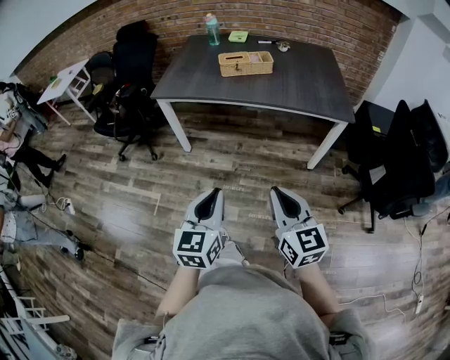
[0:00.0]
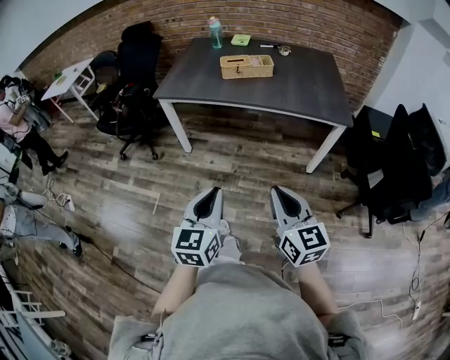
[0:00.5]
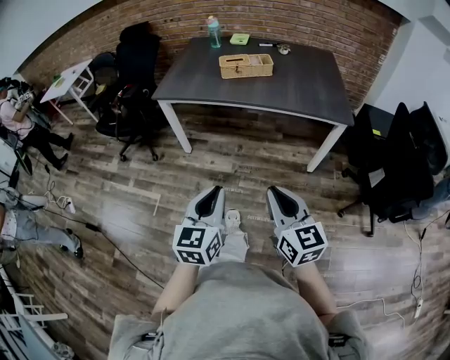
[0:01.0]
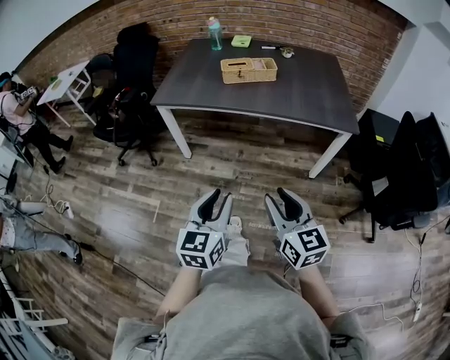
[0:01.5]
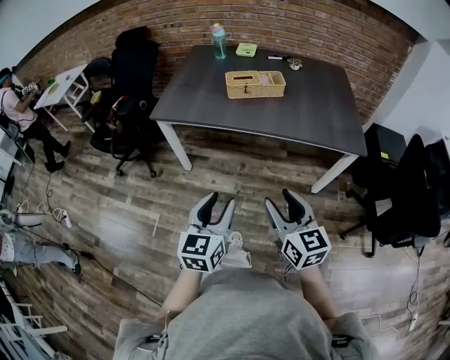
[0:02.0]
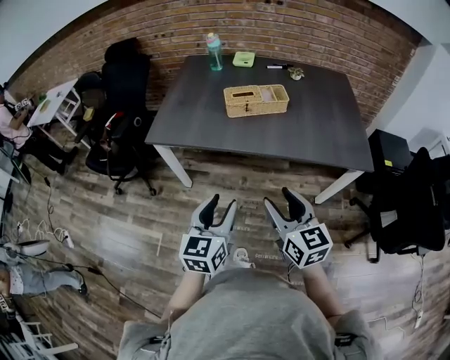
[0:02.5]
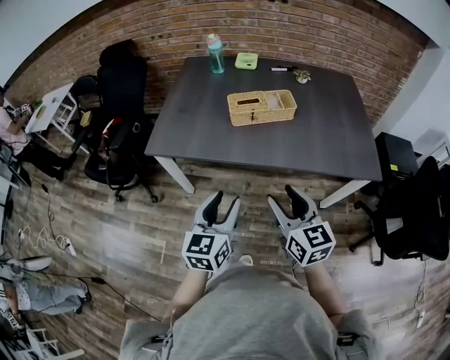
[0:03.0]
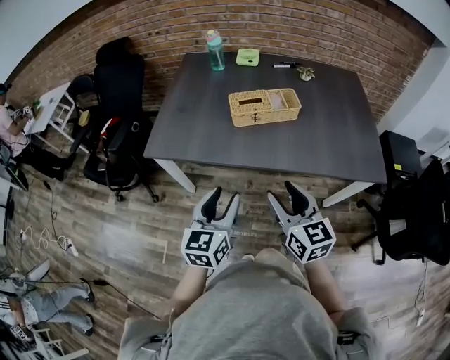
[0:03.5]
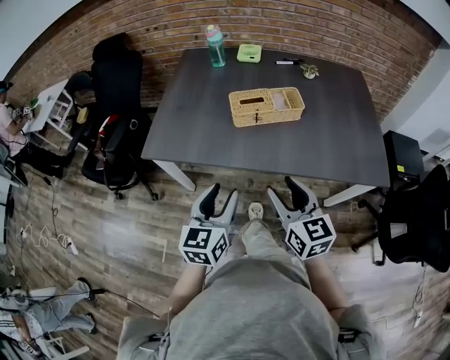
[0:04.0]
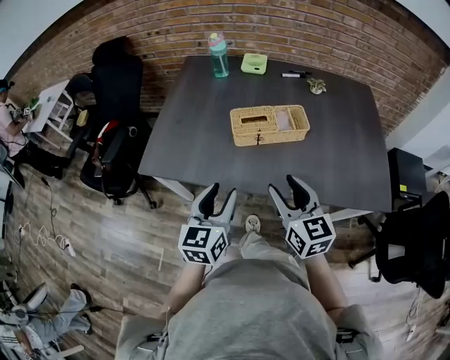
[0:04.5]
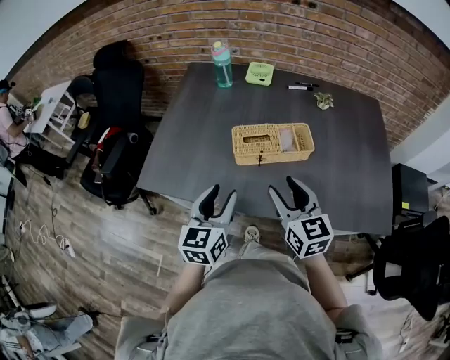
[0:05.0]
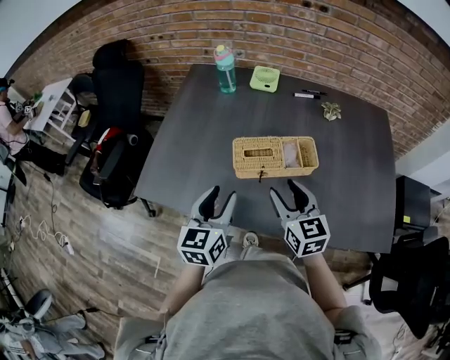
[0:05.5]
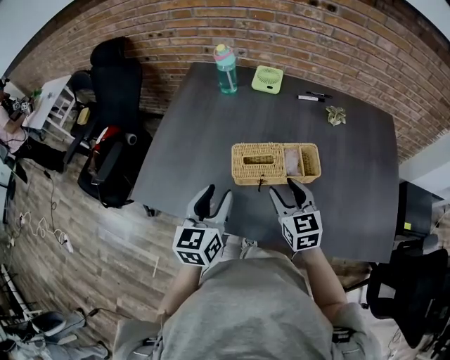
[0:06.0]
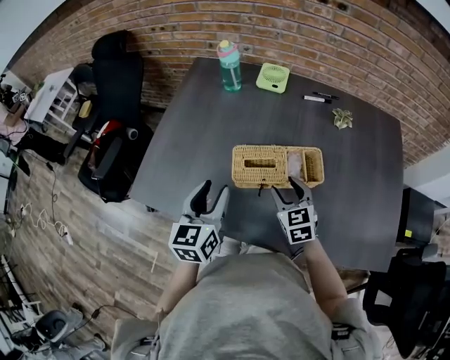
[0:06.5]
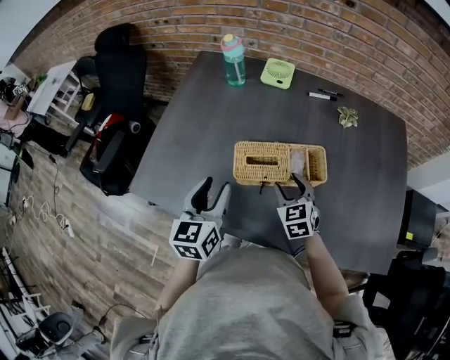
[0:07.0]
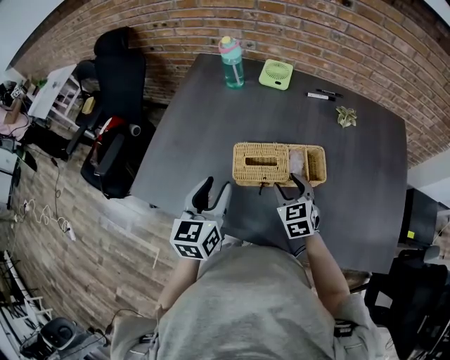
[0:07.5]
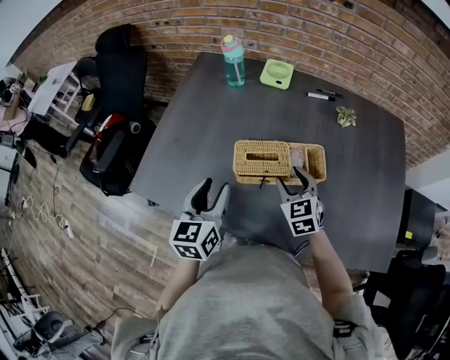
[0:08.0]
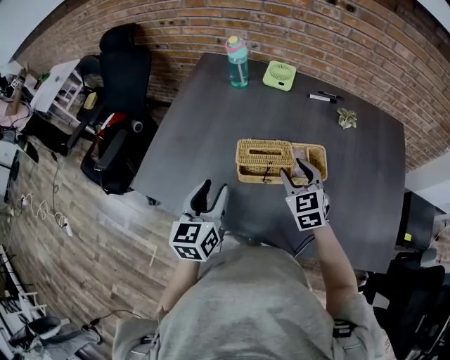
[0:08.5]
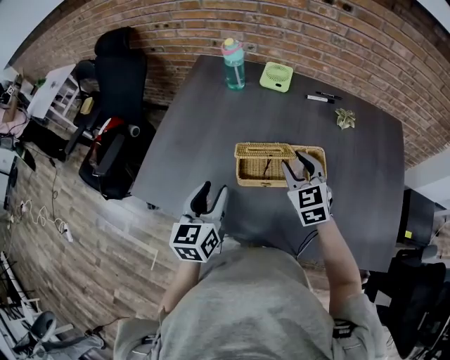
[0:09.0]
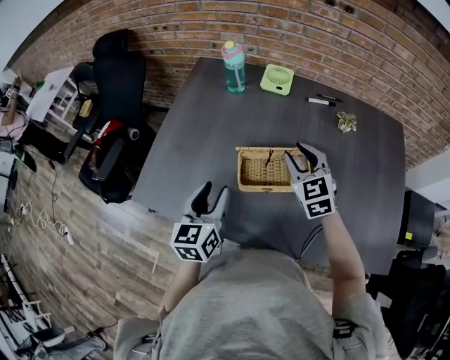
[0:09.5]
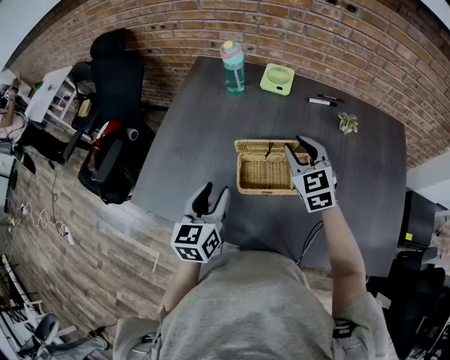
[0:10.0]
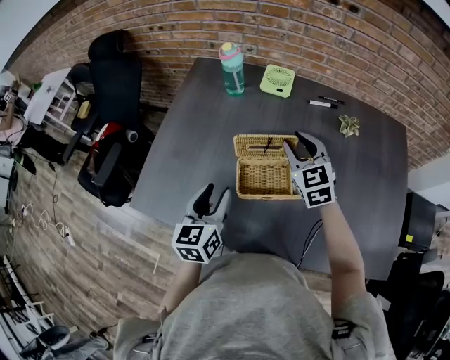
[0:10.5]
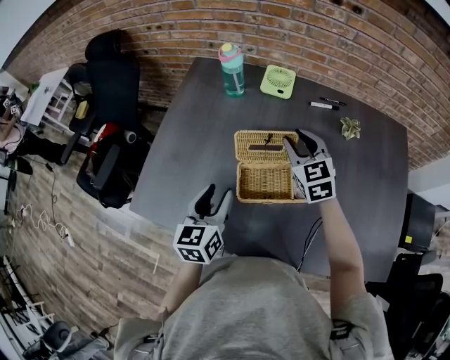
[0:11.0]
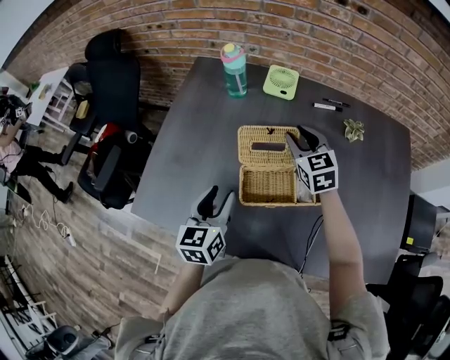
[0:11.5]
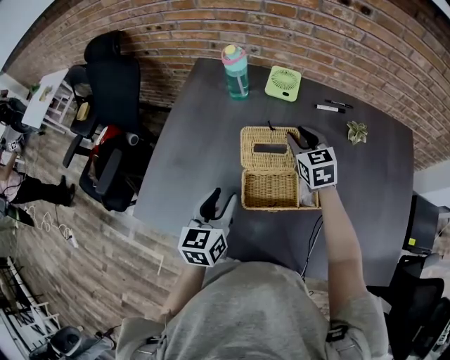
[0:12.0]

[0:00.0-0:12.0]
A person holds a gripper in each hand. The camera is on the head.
0:00.0 to 0:02.0: Both grippers move forward, roughly 15 cm. The left gripper opens, while the right gripper opens up.
0:02.0 to 0:04.0: Both grippers travel together forward, some 30 cm.
0:04.0 to 0:06.0: Both grippers travel together forward, roughly 30 cm.
0:06.0 to 0:08.0: The right gripper travels forward by some 5 cm.
0:08.0 to 0:10.0: The right gripper goes roughly 15 cm forward and upward.
0:10.0 to 0:12.0: The right gripper is displaced forward and downward by some 15 cm. The left gripper shifts some 5 cm forward.

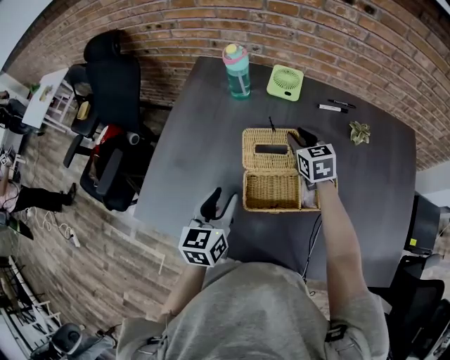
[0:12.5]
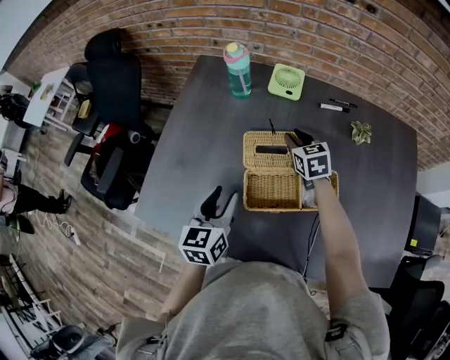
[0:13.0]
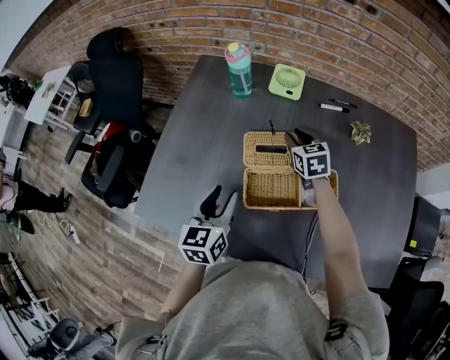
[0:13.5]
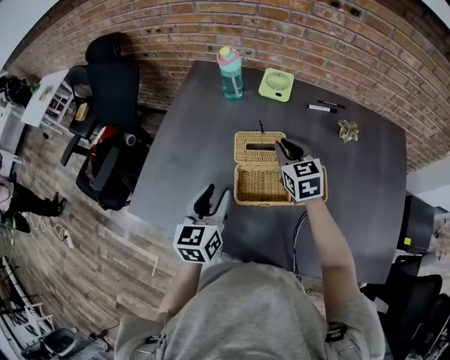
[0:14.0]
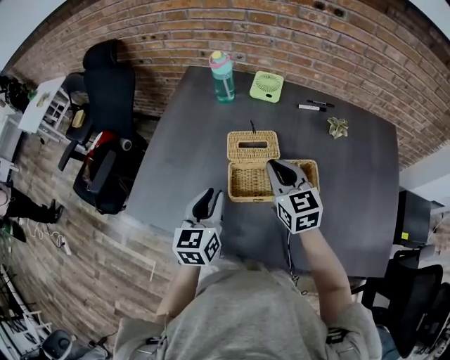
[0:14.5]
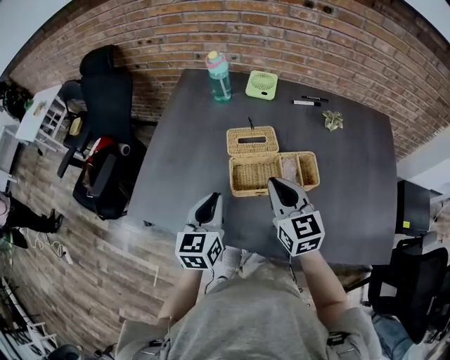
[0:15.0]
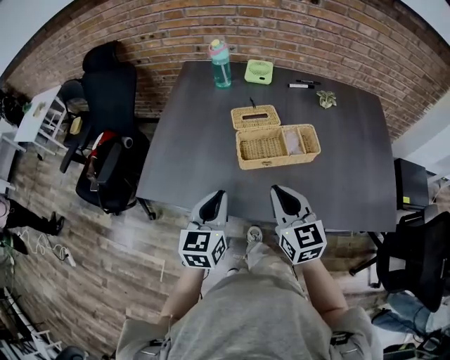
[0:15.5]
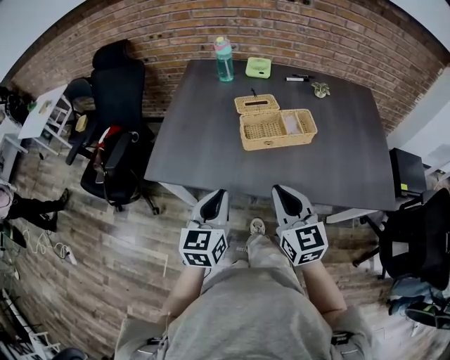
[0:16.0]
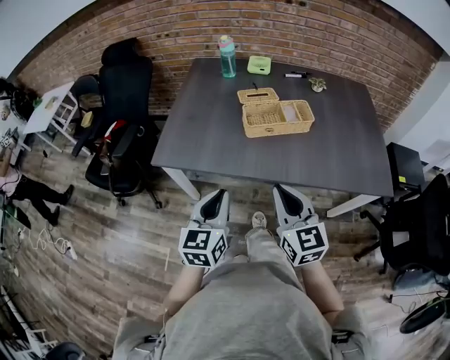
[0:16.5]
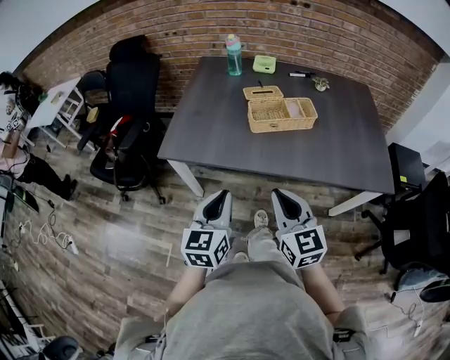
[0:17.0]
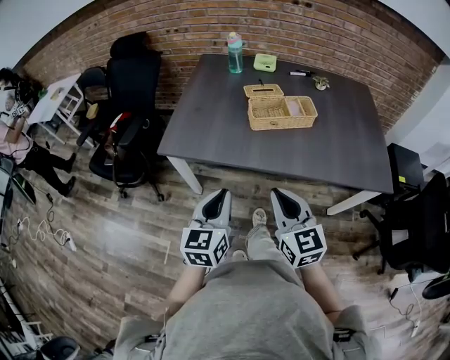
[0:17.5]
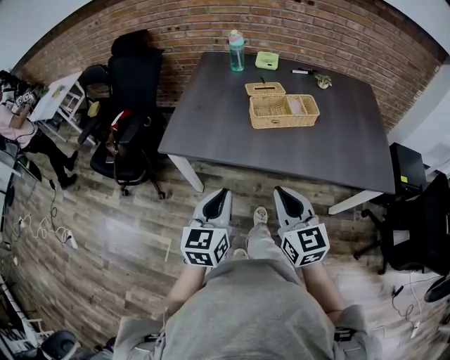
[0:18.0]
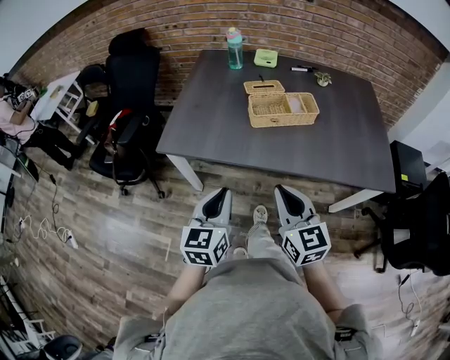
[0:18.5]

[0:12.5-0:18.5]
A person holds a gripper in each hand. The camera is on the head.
0:12.5 to 0:14.5: The right gripper moves backward and upward, roughly 20 cm, and closes up. The left gripper shifts by roughly 5 cm.
0:14.5 to 0:16.5: The grippers both shift backward by approximately 35 cm.
0:16.5 to 0:18.5: The grippers make only small movements.

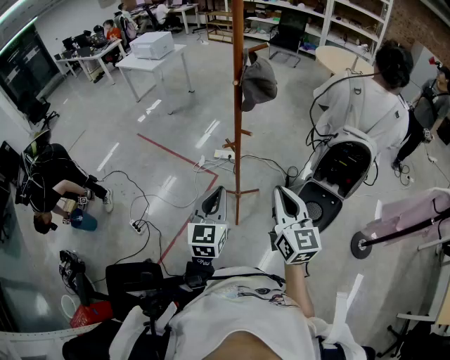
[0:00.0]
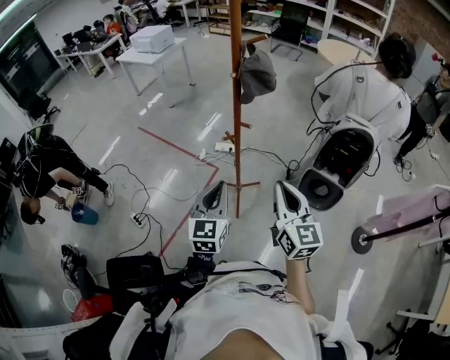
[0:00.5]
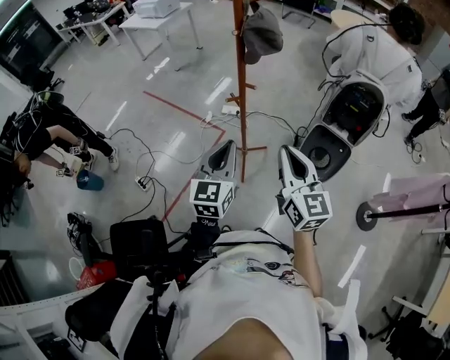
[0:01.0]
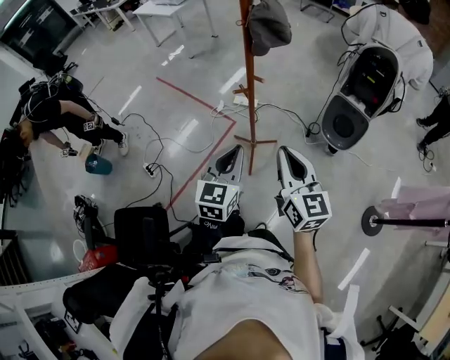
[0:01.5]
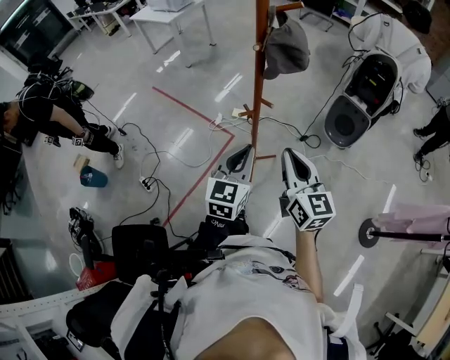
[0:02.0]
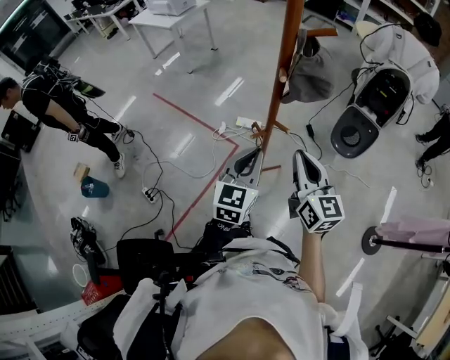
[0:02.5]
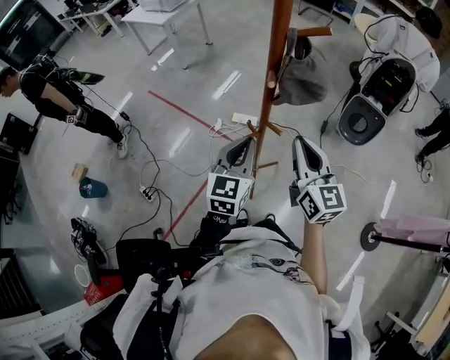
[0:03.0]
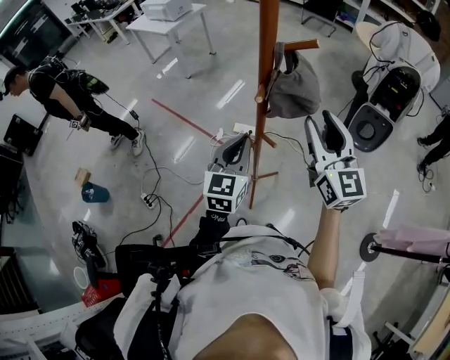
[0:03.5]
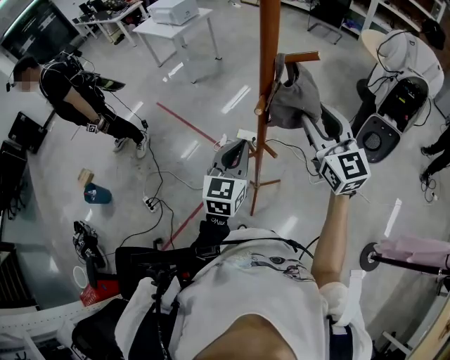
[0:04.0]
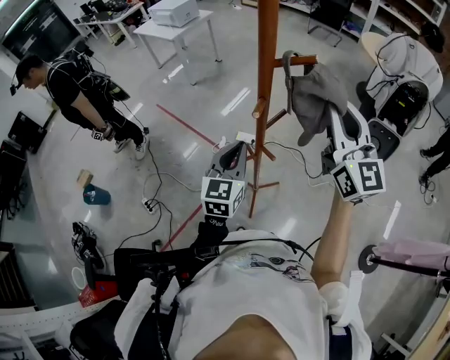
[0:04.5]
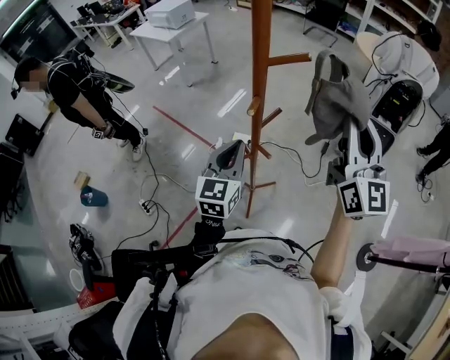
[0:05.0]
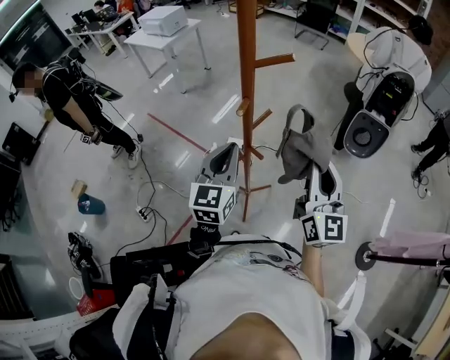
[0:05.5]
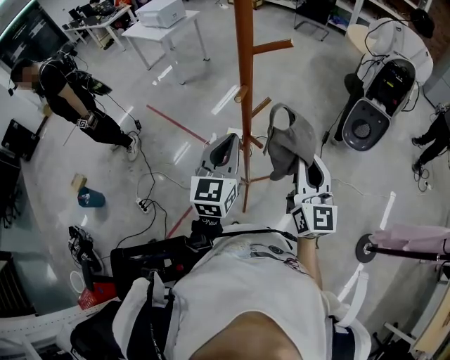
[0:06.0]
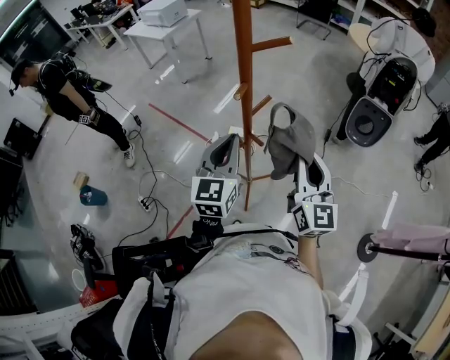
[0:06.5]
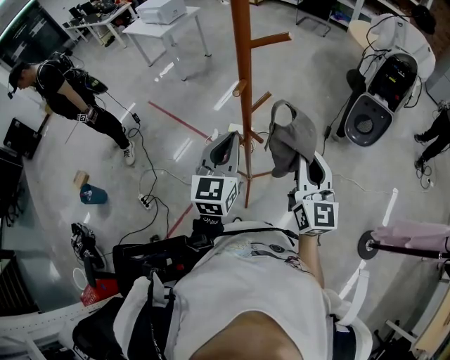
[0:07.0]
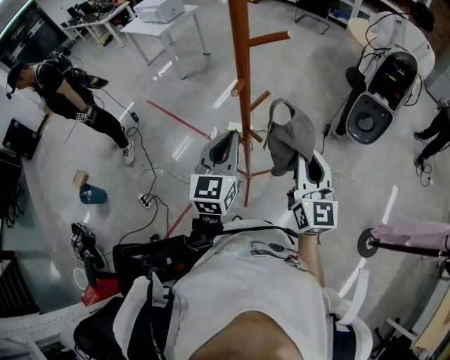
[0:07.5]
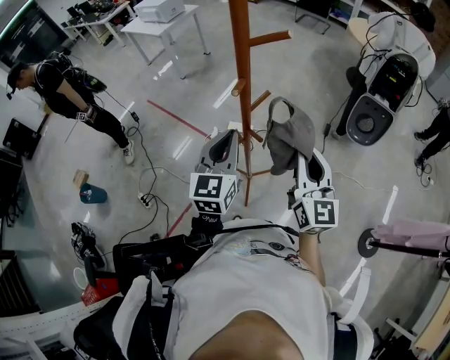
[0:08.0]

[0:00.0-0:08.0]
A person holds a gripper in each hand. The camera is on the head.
0:00.0 to 0:02.0: Both grippers move forward, some 10 cm.
0:02.0 to 0:04.0: The left gripper is displaced forward by roughly 20 cm. The right gripper goes roughly 25 cm forward and upward, changes its angle by some 20 degrees, and opens up.
0:04.0 to 0:06.0: The right gripper heads backward and downward, covering roughly 15 cm, turns by some 20 degrees, and closes its fingers, while the left gripper moves about 5 cm.
0:06.0 to 0:08.0: Both grippers stay put.

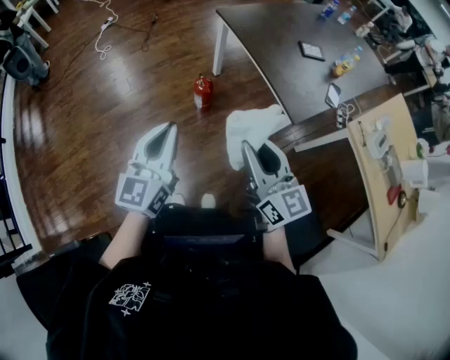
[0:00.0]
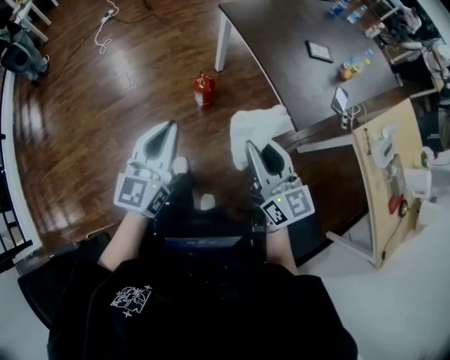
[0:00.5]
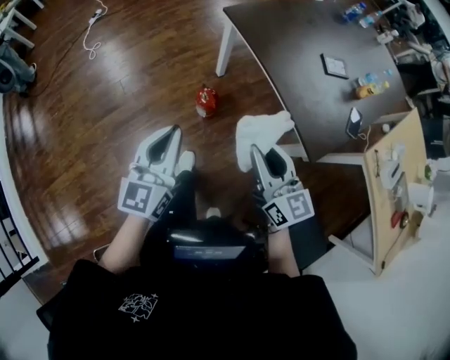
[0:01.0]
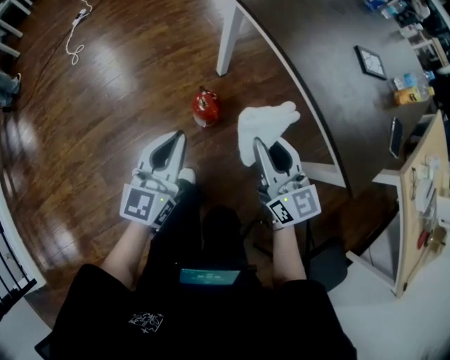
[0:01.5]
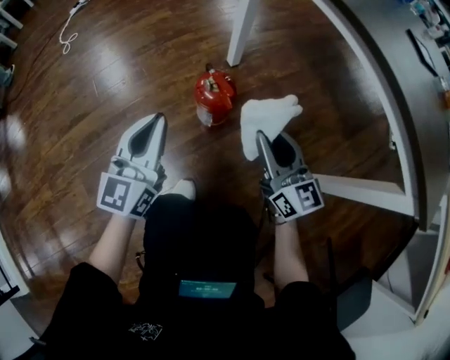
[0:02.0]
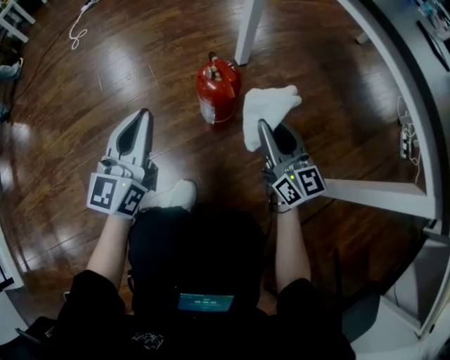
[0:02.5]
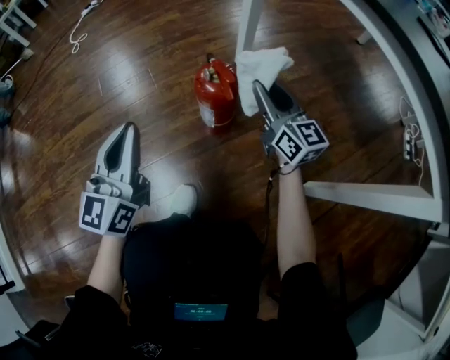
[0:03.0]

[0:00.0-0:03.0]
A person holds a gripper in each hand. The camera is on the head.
0:00.0 to 0:01.5: The two grippers go some 50 cm downward and forward.
0:01.5 to 0:03.0: The left gripper heads downward, covering roughly 25 cm. Meanwhile the right gripper travels downward and forward by about 35 cm.
